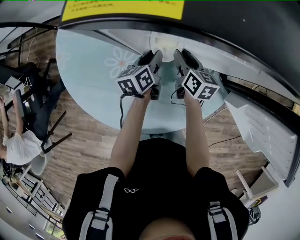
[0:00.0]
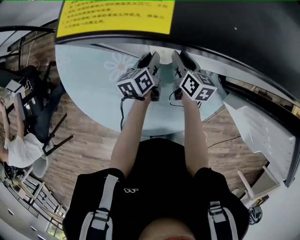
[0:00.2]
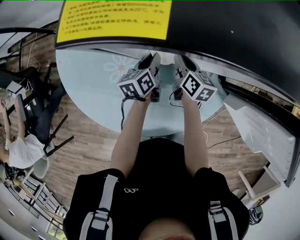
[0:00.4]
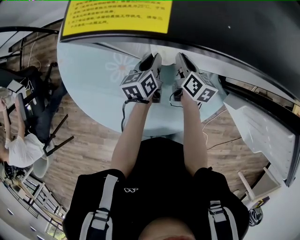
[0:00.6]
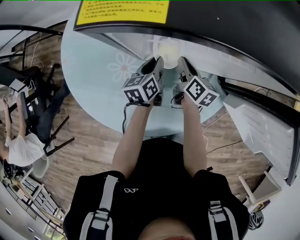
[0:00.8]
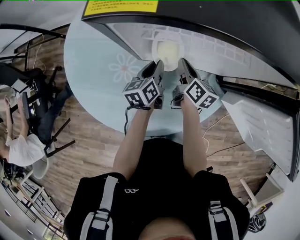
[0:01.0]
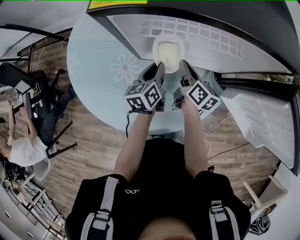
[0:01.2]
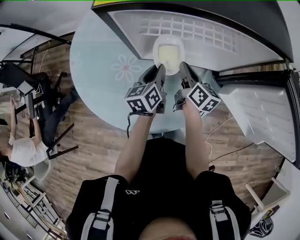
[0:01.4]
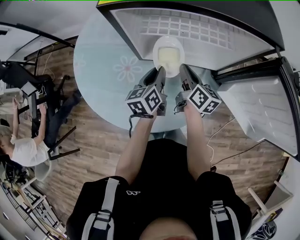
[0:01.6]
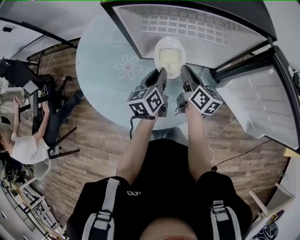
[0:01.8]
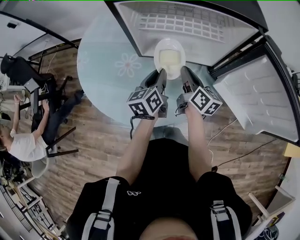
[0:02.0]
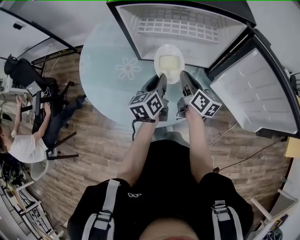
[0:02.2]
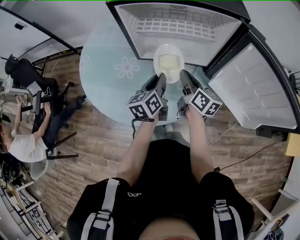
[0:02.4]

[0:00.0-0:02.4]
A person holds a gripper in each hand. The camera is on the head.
0:00.0 to 0:01.2: The left gripper heads upward and backward, covering roughly 10 cm. The right gripper shifts some 5 cm upward, and closes.
0:01.2 to 0:02.4: The two grippers go roughly 15 cm backward and upward.

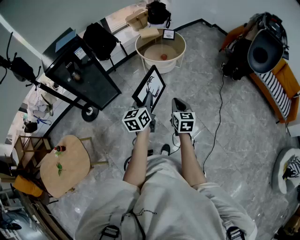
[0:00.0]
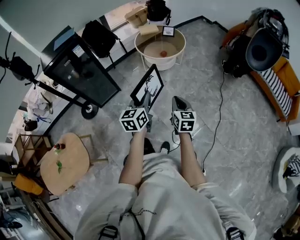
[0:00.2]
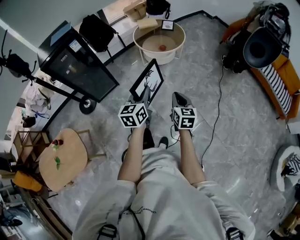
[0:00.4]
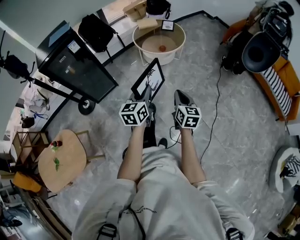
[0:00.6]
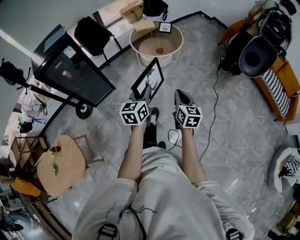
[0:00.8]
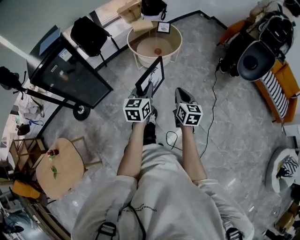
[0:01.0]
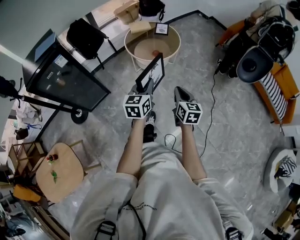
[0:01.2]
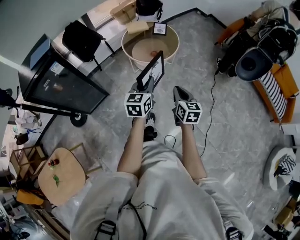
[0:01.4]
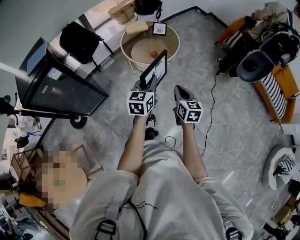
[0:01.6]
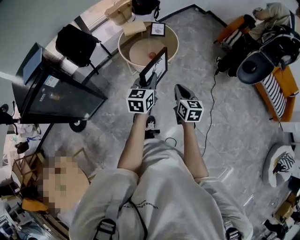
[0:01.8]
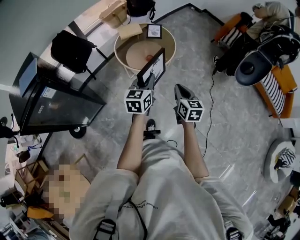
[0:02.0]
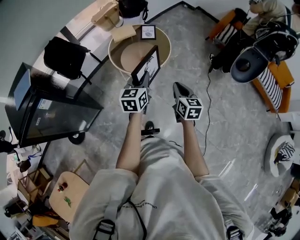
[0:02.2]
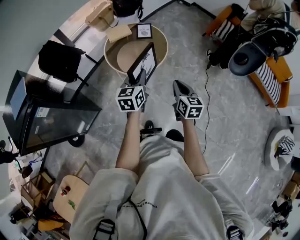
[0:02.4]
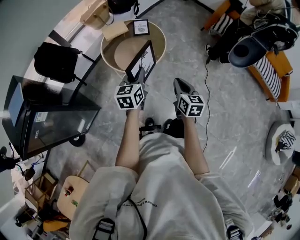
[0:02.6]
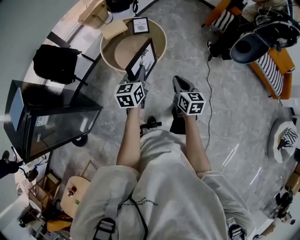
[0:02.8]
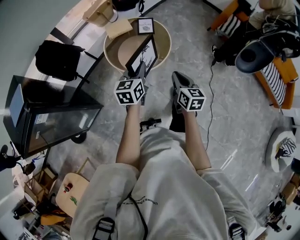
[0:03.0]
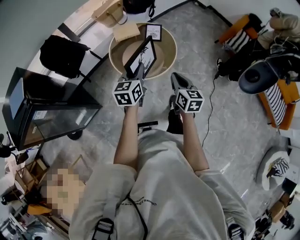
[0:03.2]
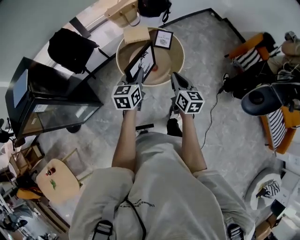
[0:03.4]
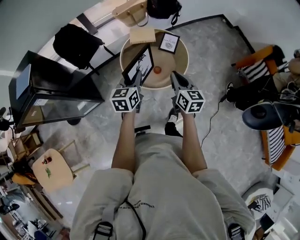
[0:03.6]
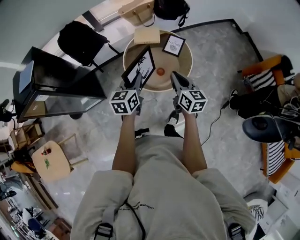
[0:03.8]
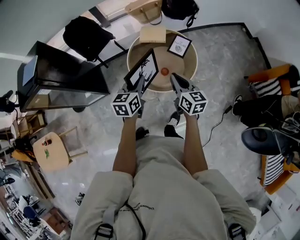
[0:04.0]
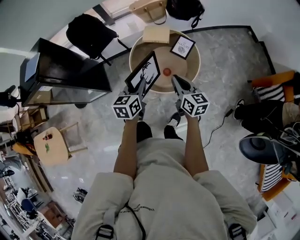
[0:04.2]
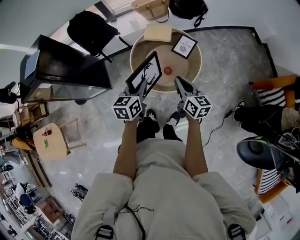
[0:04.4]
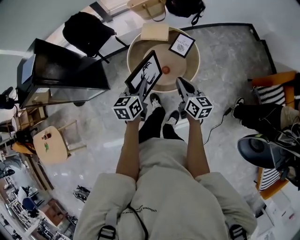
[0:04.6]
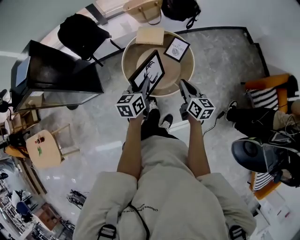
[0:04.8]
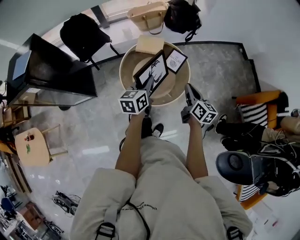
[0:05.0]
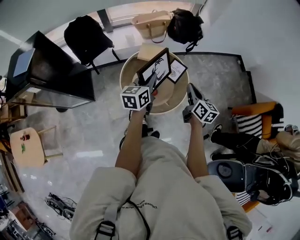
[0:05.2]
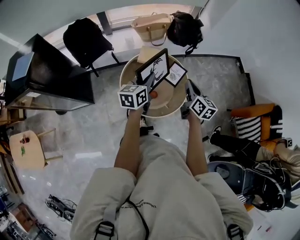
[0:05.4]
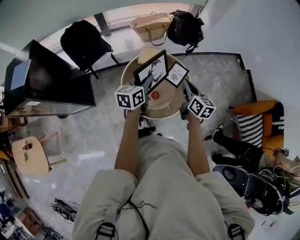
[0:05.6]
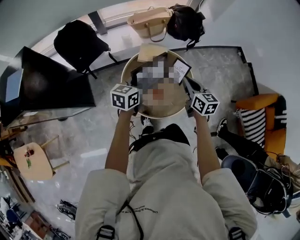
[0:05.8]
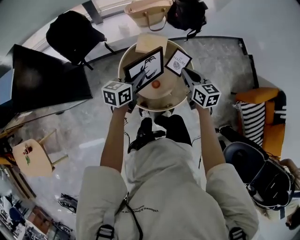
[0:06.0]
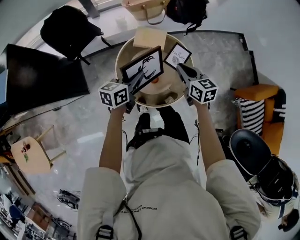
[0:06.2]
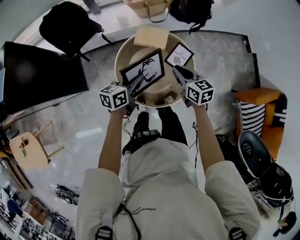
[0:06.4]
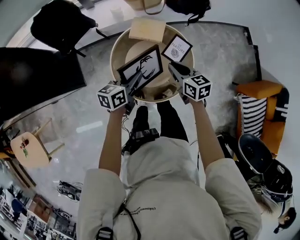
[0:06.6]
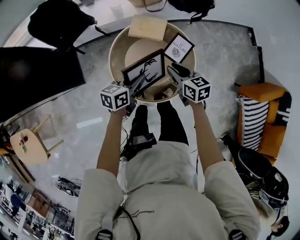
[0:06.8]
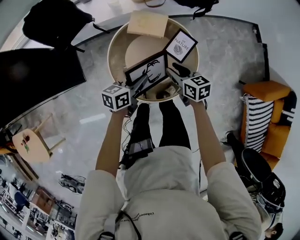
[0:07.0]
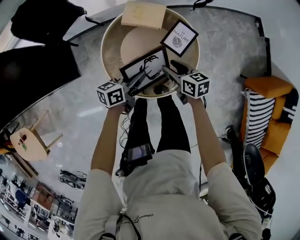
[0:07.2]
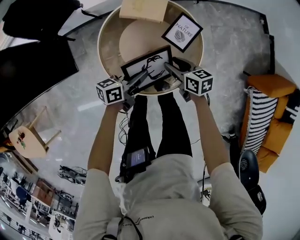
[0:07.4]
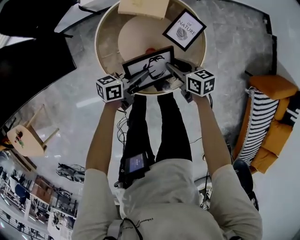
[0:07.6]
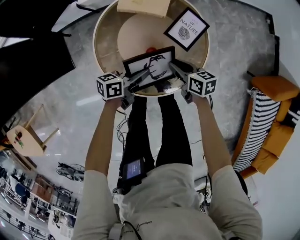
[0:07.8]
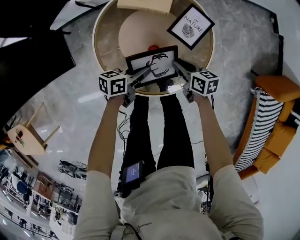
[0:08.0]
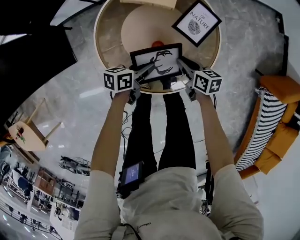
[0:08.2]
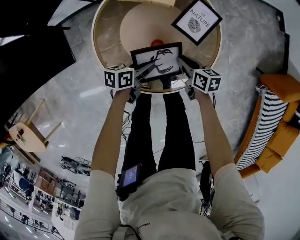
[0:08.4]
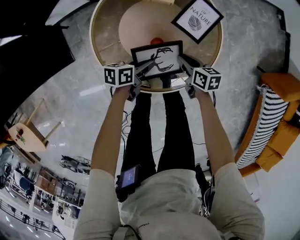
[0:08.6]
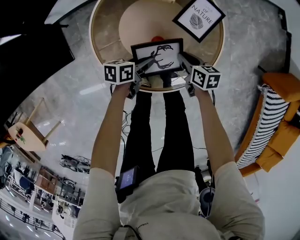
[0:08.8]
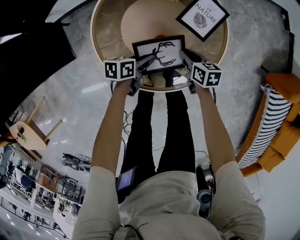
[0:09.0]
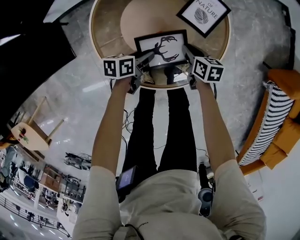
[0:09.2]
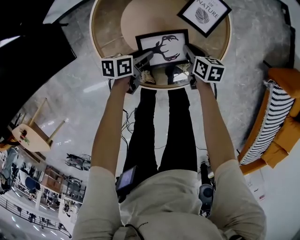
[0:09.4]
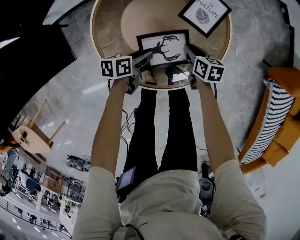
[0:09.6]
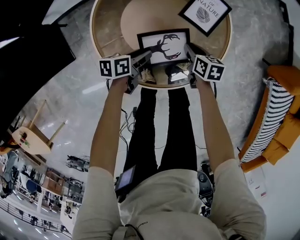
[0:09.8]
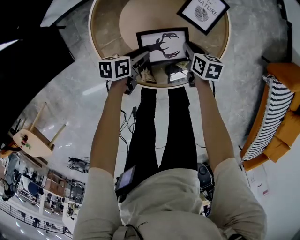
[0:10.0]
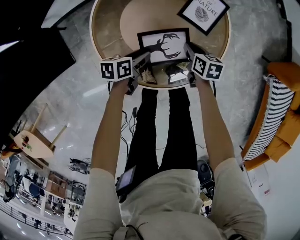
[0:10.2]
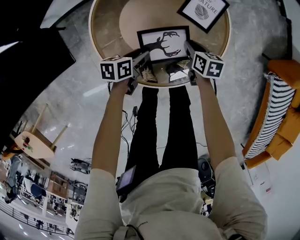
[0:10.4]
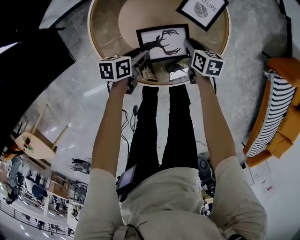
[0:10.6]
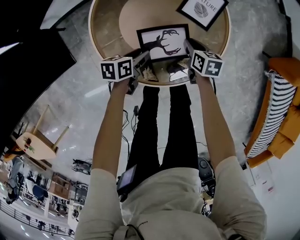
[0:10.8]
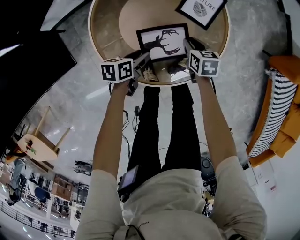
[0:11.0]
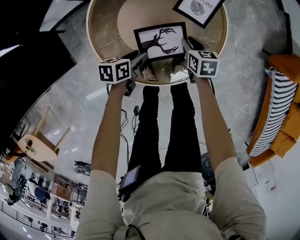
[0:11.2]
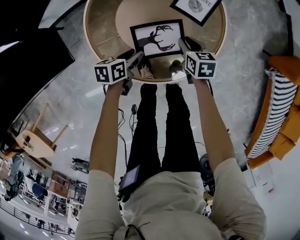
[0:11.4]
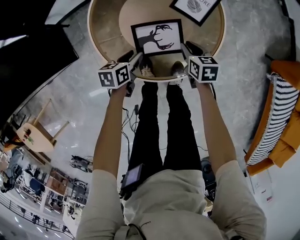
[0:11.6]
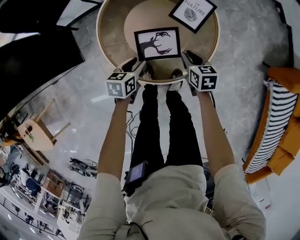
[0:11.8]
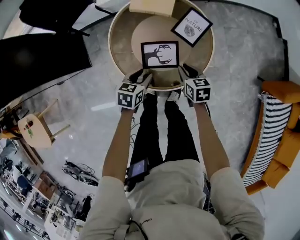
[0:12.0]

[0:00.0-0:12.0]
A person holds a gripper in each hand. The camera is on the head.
0:00.0 to 0:01.6: The two grippers go some 30 cm forward.
0:01.6 to 0:03.0: The grippers both shift forward by approximately 25 cm.
0:03.0 to 0:04.4: The right gripper moves about 30 cm, and swivels about 40 degrees. The left gripper shifts by some 15 cm, and turns by roughly 30 degrees.
0:04.4 to 0:06.0: The two grippers go about 25 cm forward. The right gripper changes its angle by roughly 20 degrees.
0:06.0 to 0:07.6: Both grippers move downward, approximately 30 cm. The left gripper swivels approximately 30 degrees, while the right gripper swivels roughly 30 degrees, and opens its fingers.
0:07.6 to 0:09.0: Both grippers travel together downward, approximately 15 cm. The left gripper swivels approximately 30 degrees, and opens its fingers.
0:09.0 to 0:10.4: The grippers move only a little.
0:10.4 to 0:12.0: The left gripper shifts approximately 15 cm upward, and changes its angle by roughly 30 degrees. The right gripper is displaced upward and backward by some 20 cm, and rotates about 20 degrees.

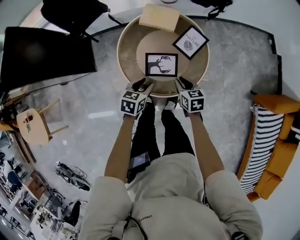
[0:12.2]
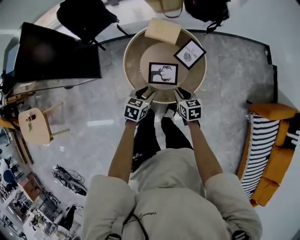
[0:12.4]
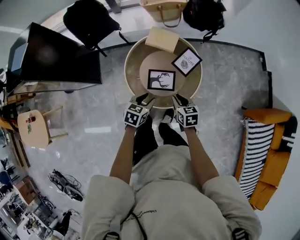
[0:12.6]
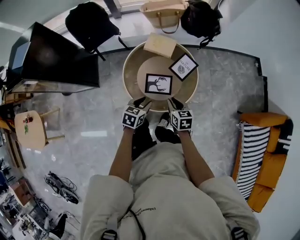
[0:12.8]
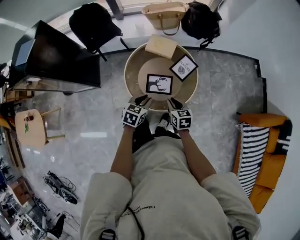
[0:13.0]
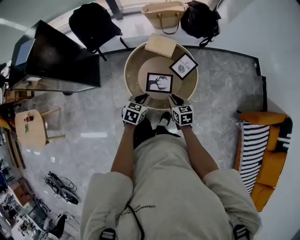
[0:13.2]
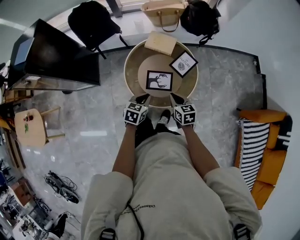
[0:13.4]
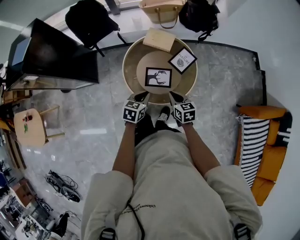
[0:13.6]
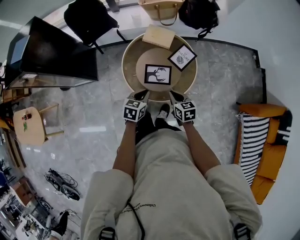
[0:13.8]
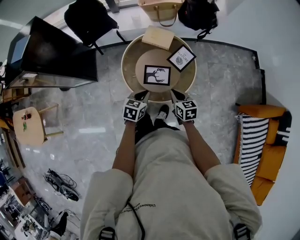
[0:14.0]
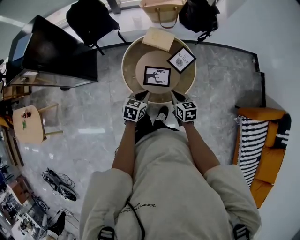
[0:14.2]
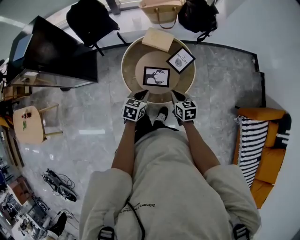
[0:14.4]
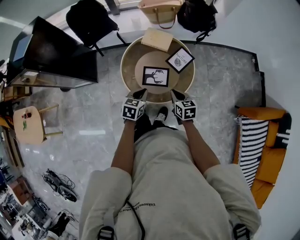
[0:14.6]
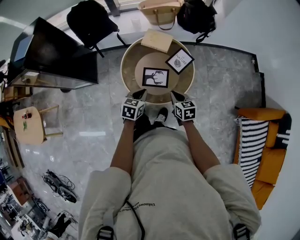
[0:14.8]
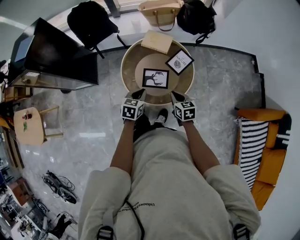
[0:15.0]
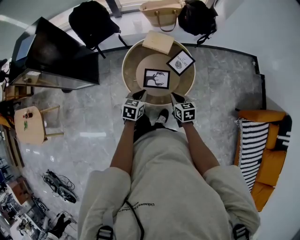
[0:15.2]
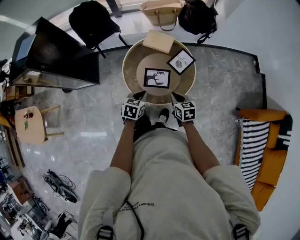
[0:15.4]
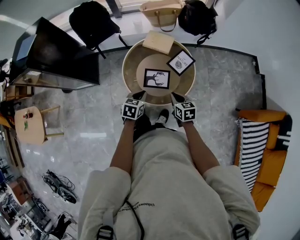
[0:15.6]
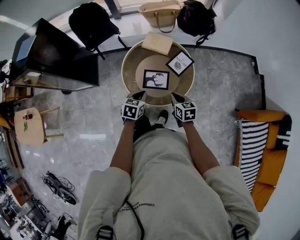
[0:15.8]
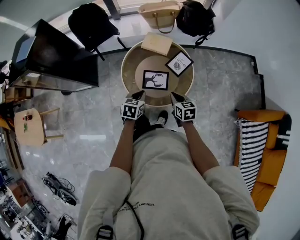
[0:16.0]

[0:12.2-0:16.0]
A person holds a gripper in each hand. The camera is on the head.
0:12.2 to 0:13.4: Both grippers move upward, some 15 cm. The left gripper closes its fingers.
0:13.4 to 0:16.0: The grippers stay close to where they were, moving slightly.

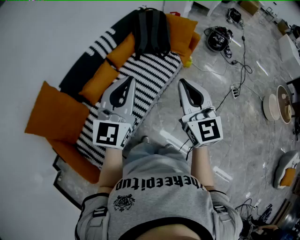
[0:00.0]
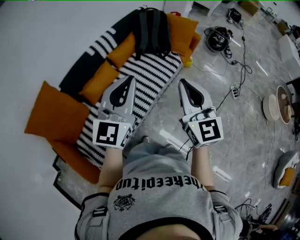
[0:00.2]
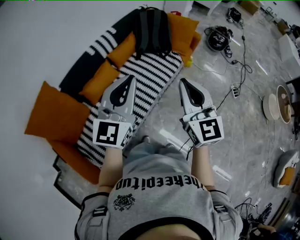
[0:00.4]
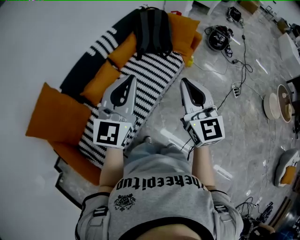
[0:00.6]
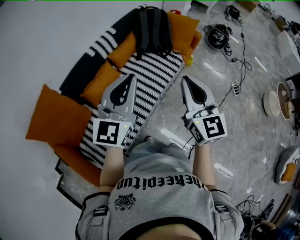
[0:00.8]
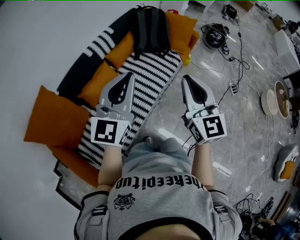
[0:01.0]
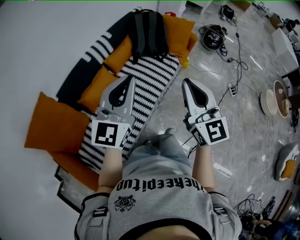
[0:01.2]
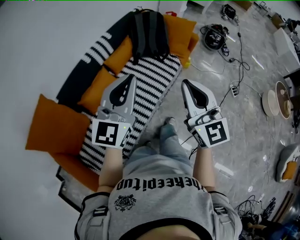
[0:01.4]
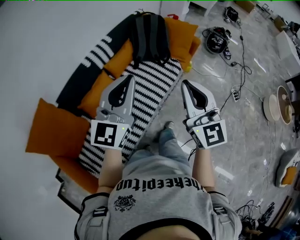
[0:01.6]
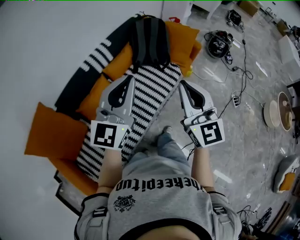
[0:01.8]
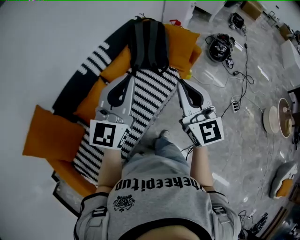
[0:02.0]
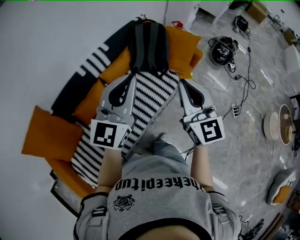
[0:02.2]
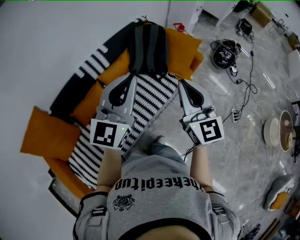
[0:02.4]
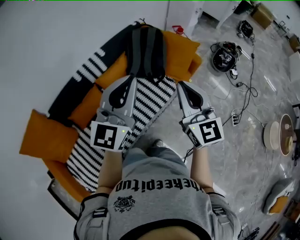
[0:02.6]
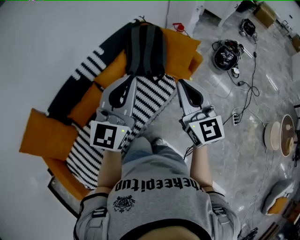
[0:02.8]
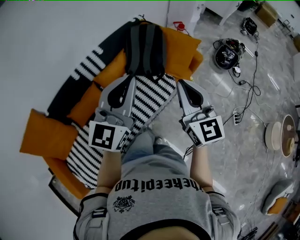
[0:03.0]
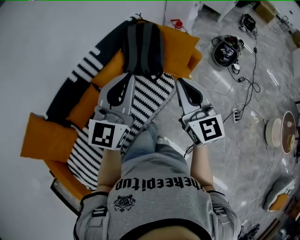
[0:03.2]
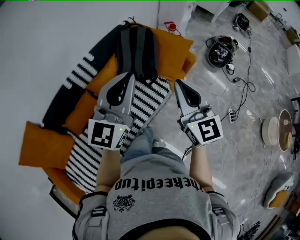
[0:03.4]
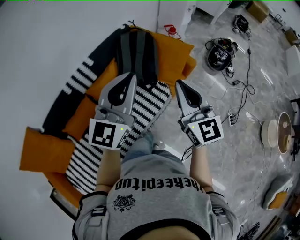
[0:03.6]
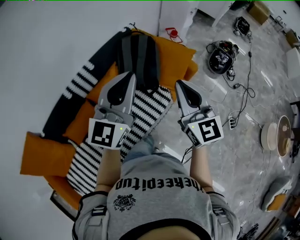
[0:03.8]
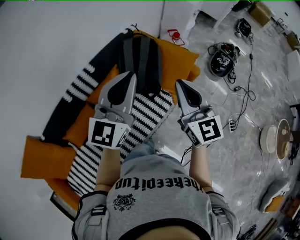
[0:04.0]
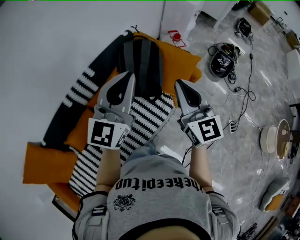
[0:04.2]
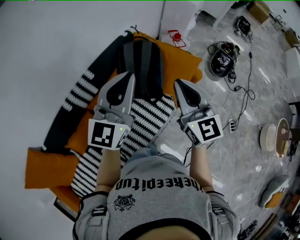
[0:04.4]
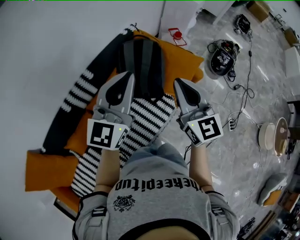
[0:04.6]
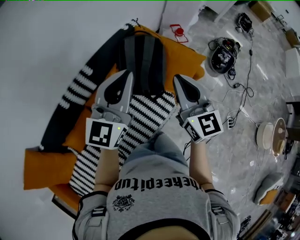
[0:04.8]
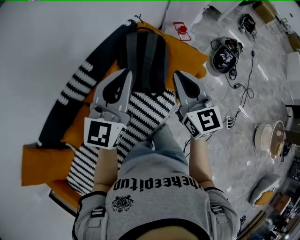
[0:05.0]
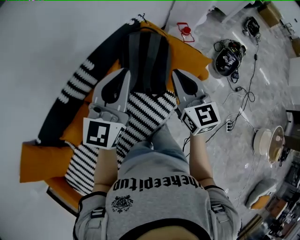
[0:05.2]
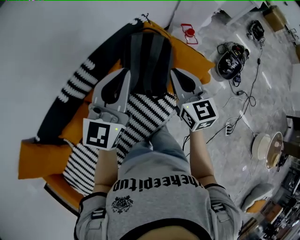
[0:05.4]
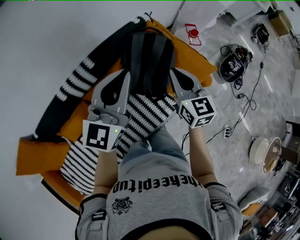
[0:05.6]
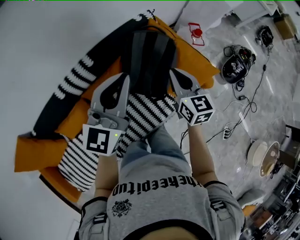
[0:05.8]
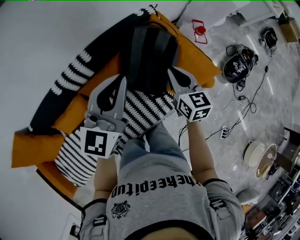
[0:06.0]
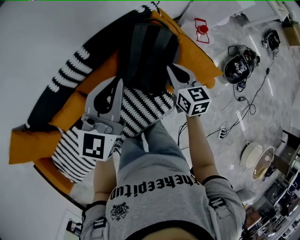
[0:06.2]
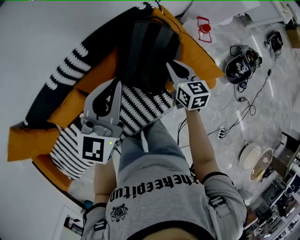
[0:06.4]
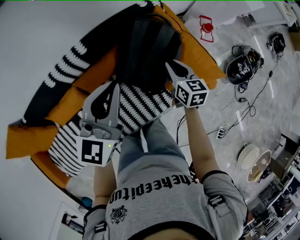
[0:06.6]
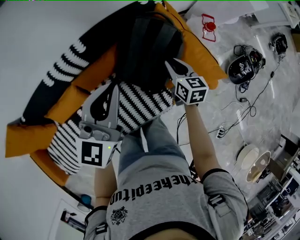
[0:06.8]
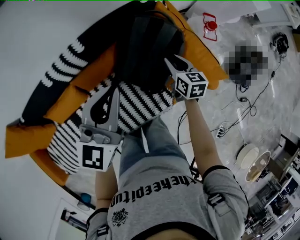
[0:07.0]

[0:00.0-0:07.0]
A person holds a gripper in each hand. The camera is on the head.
0:00.0 to 0:01.4: Both grippers travel together forward, approximately 5 cm.
0:01.4 to 0:02.8: Both grippers travel together forward and to the right, approximately 25 cm.
0:02.8 to 0:04.2: Both grippers move forward, some 20 cm.
0:04.2 to 0:05.6: The right gripper heads forward and downward, covering about 20 cm. The left gripper shifts some 15 cm forward, to the left and downward.
0:05.6 to 0:07.0: The right gripper is displaced downward and forward by about 25 cm, turns by some 20 degrees, and opens its fingers. The left gripper is displaced downward by about 10 cm.
